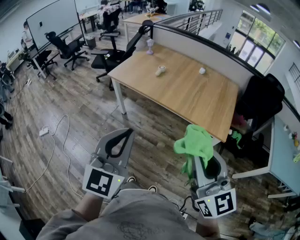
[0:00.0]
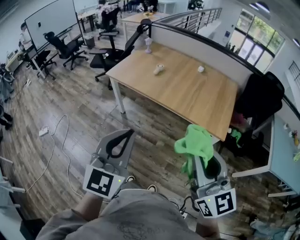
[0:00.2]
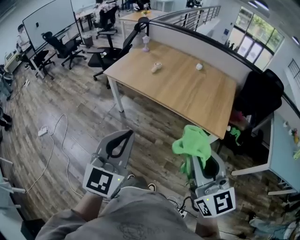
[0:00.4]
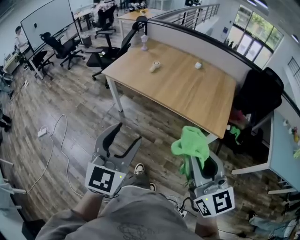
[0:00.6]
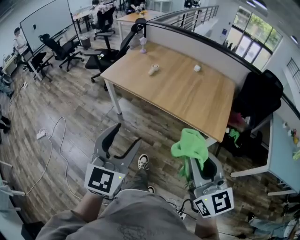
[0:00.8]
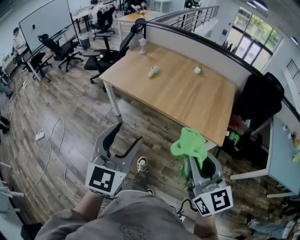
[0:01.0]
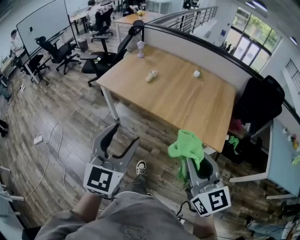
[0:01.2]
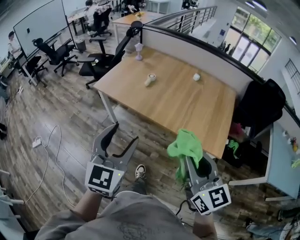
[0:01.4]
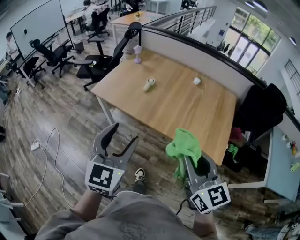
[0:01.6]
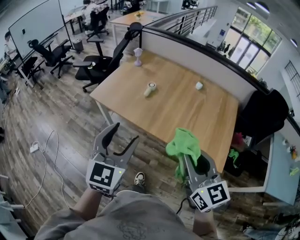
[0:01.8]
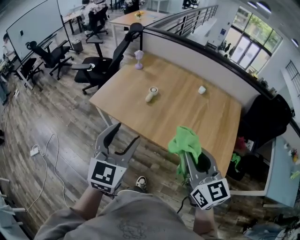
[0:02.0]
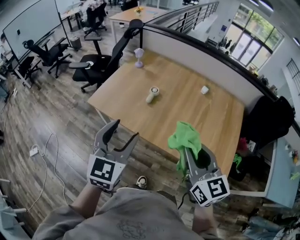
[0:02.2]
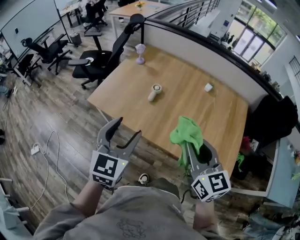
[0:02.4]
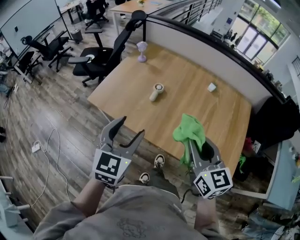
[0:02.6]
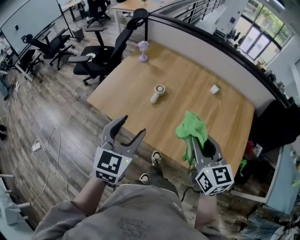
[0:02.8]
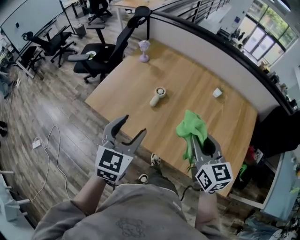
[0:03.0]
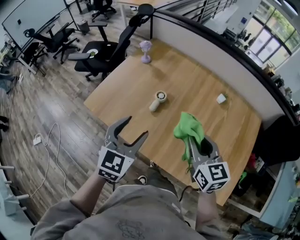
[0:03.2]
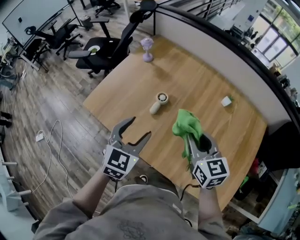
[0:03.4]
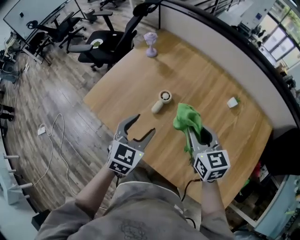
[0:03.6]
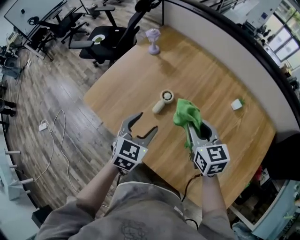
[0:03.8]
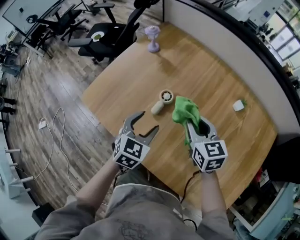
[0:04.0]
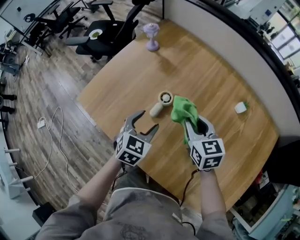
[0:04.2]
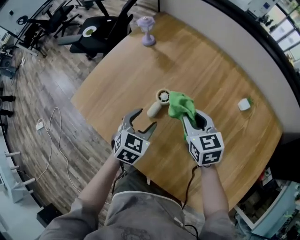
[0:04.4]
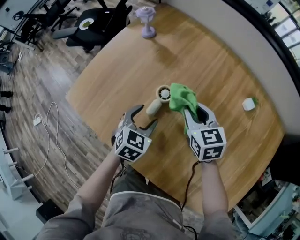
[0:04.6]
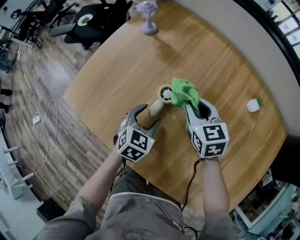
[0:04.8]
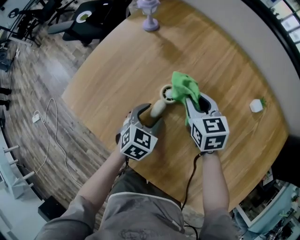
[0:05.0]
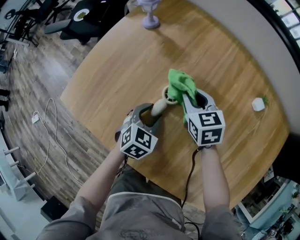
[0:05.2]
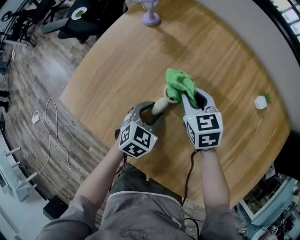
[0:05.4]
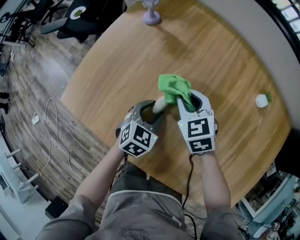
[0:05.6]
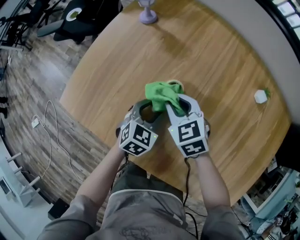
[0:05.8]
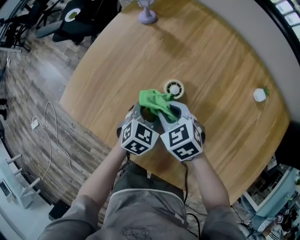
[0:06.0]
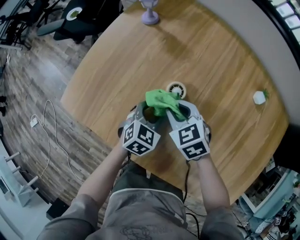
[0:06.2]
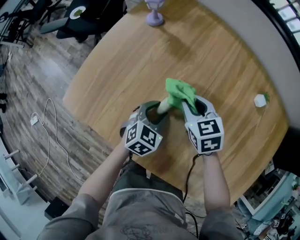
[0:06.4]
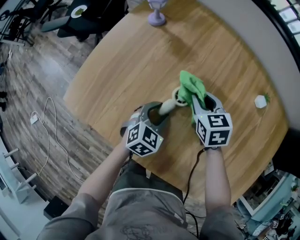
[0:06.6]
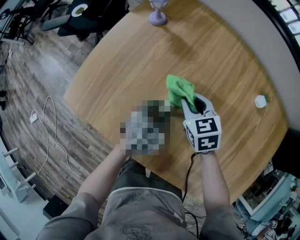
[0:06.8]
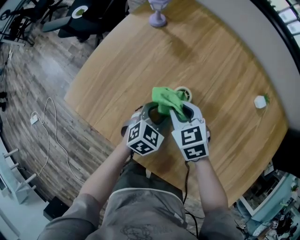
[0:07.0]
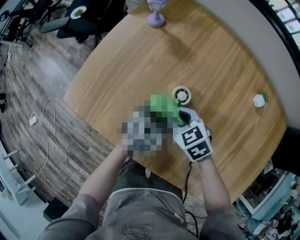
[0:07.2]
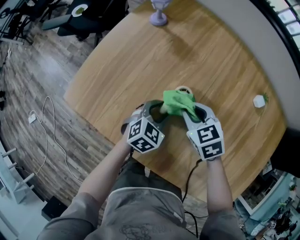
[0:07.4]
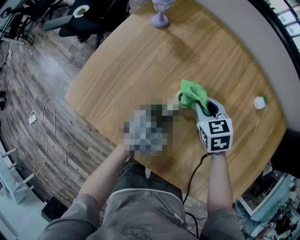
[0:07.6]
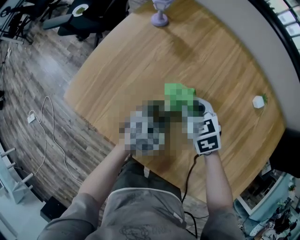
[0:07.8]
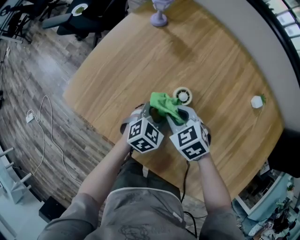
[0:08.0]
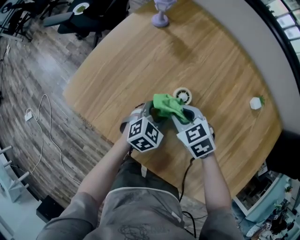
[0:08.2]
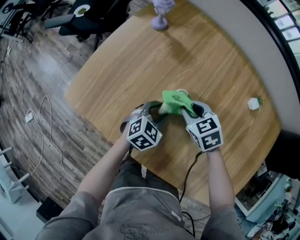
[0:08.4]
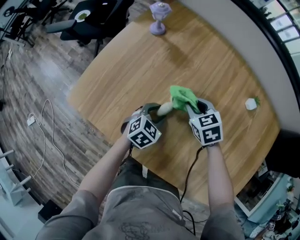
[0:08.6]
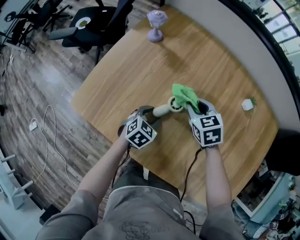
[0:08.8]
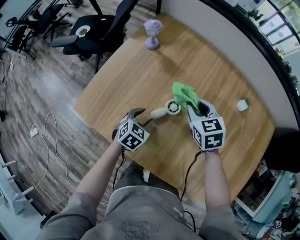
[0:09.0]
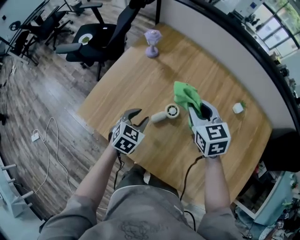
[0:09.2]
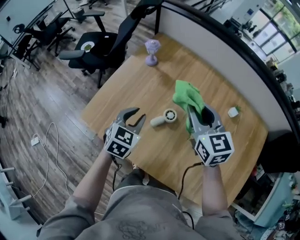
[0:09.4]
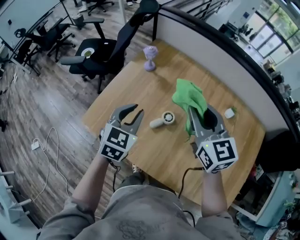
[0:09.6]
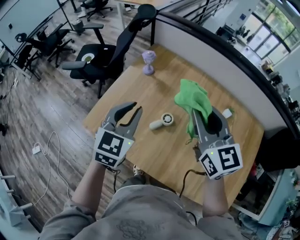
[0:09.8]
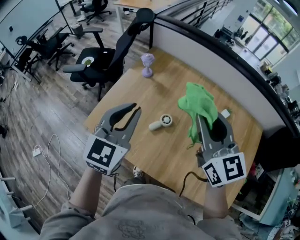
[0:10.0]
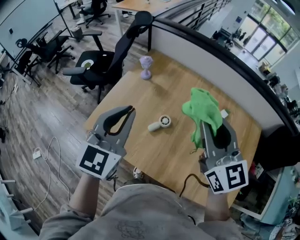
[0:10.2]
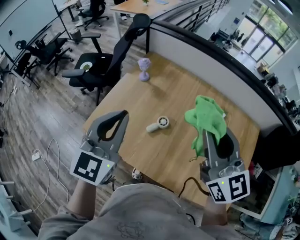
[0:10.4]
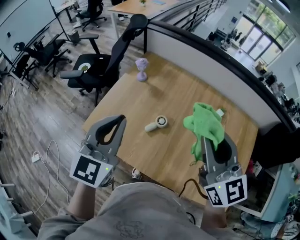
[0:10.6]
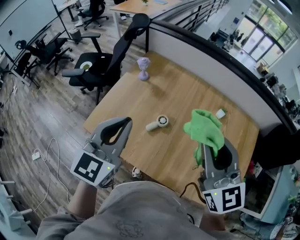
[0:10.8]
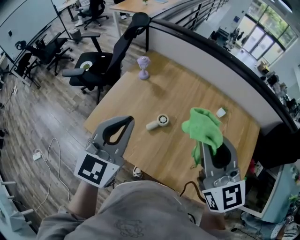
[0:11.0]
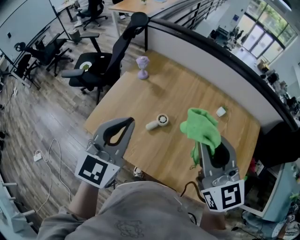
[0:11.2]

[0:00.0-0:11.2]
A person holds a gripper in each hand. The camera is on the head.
0:00.0 to 0:01.6: The two grippers go roughly 25 cm forward. The left gripper opens.
0:01.6 to 0:03.2: Both grippers travel together forward, approximately 40 cm.
0:03.2 to 0:04.8: The left gripper goes some 35 cm downward and forward, and swivels roughly 30 degrees; the right gripper shifts about 35 cm forward and downward.
0:04.8 to 0:06.4: The right gripper heads to the left, covering about 5 cm.
0:06.4 to 0:08.0: The right gripper goes forward and backward, approximately 10 cm each way, reversing 2 times, and turns by roughly 20 degrees.
0:08.0 to 0:09.6: Both grippers move upward, some 30 cm. The left gripper swivels roughly 20 degrees, and closes. Meanwhile the right gripper tilts its fingers some 40 degrees upward.
0:09.6 to 0:11.2: The left gripper is displaced upward and backward by approximately 20 cm; the right gripper shifts approximately 15 cm backward and upward.

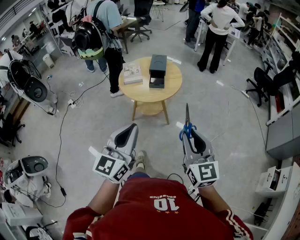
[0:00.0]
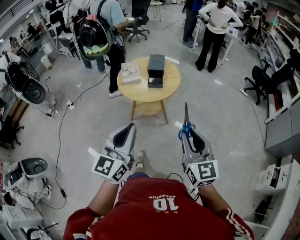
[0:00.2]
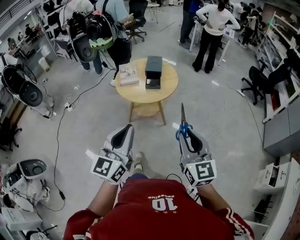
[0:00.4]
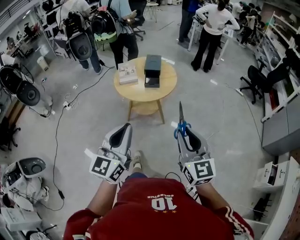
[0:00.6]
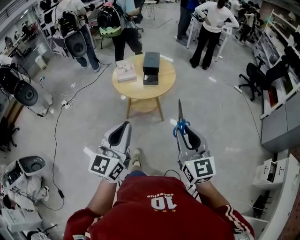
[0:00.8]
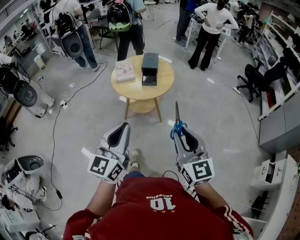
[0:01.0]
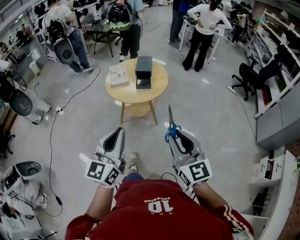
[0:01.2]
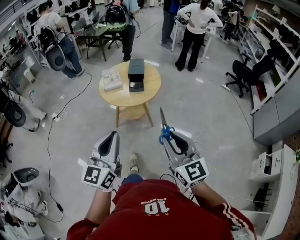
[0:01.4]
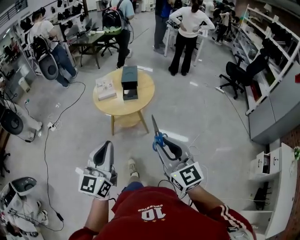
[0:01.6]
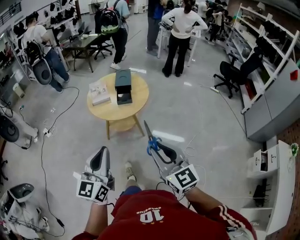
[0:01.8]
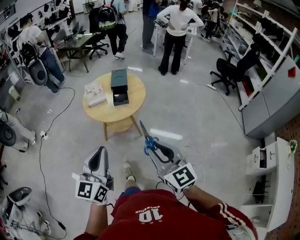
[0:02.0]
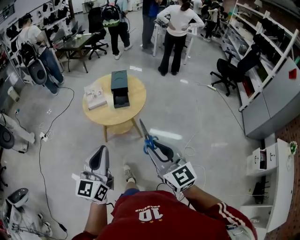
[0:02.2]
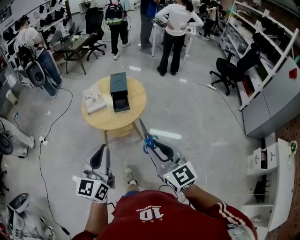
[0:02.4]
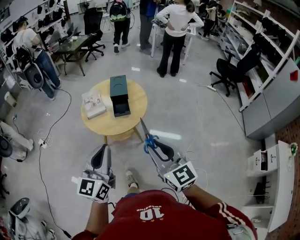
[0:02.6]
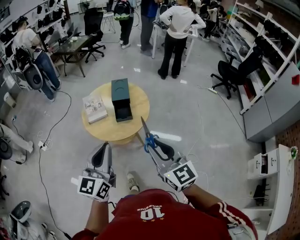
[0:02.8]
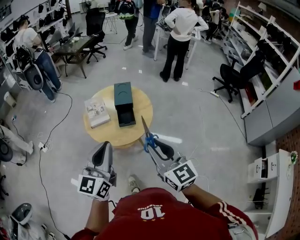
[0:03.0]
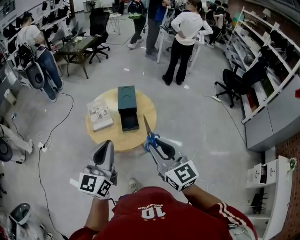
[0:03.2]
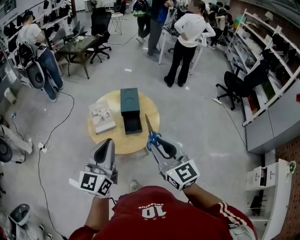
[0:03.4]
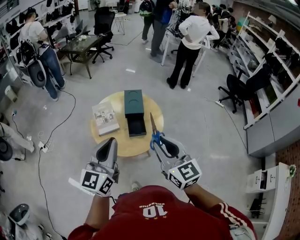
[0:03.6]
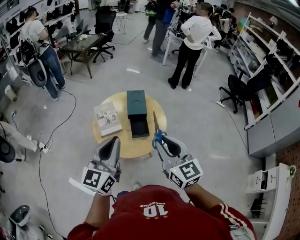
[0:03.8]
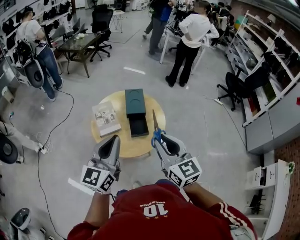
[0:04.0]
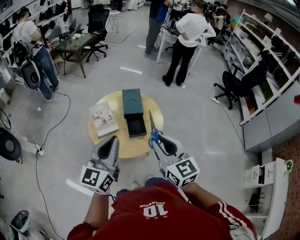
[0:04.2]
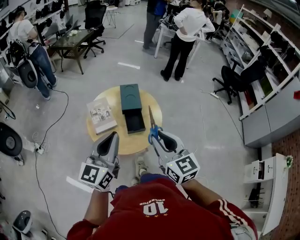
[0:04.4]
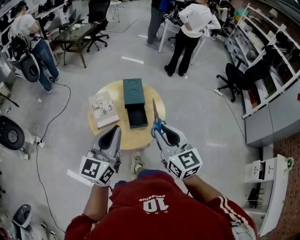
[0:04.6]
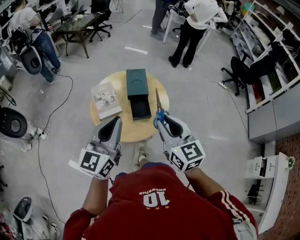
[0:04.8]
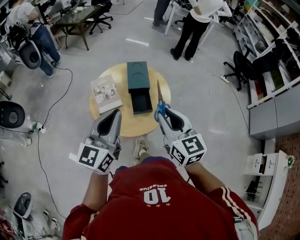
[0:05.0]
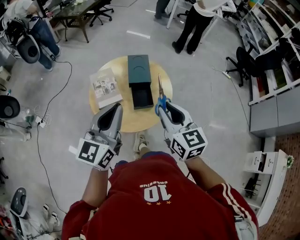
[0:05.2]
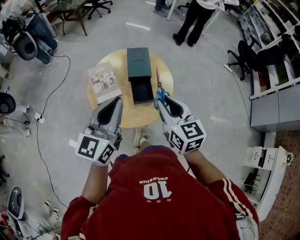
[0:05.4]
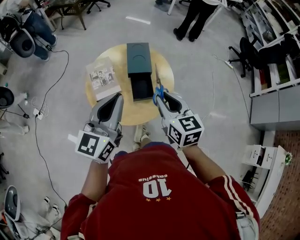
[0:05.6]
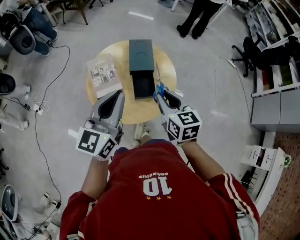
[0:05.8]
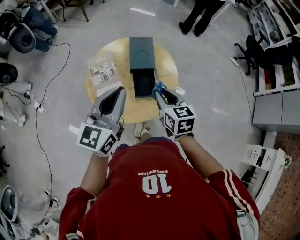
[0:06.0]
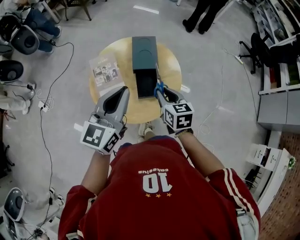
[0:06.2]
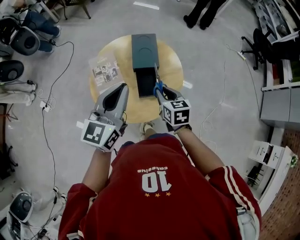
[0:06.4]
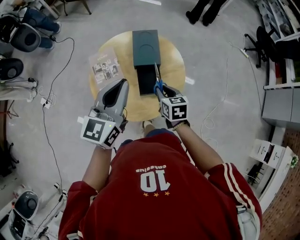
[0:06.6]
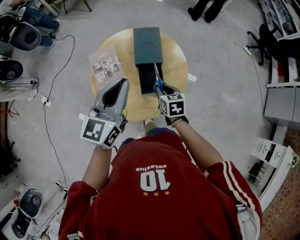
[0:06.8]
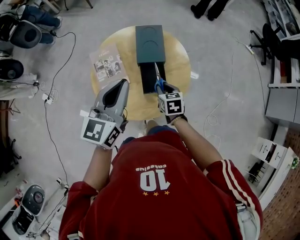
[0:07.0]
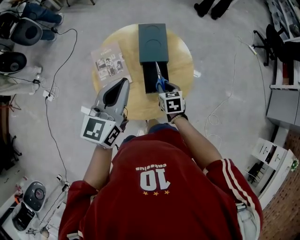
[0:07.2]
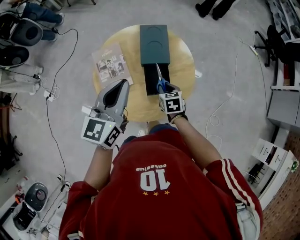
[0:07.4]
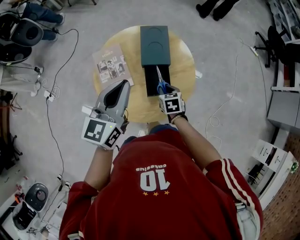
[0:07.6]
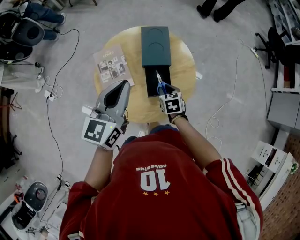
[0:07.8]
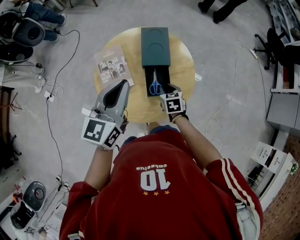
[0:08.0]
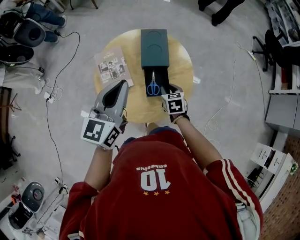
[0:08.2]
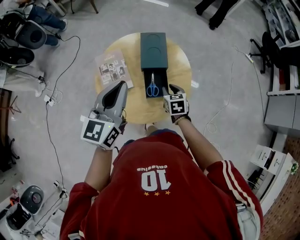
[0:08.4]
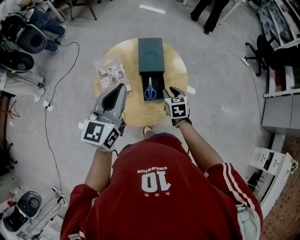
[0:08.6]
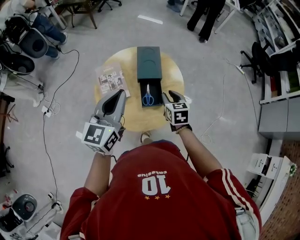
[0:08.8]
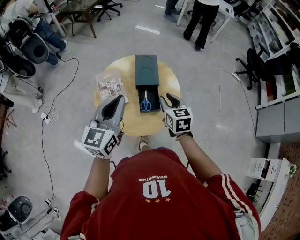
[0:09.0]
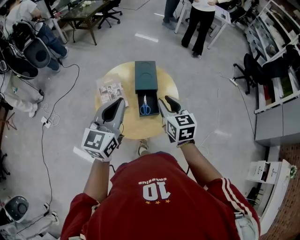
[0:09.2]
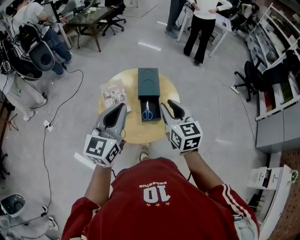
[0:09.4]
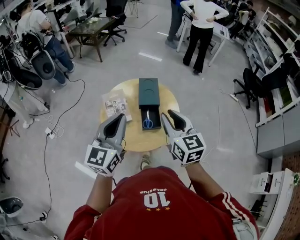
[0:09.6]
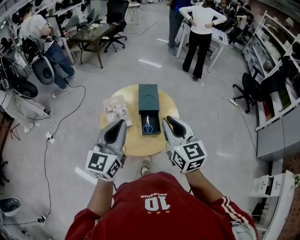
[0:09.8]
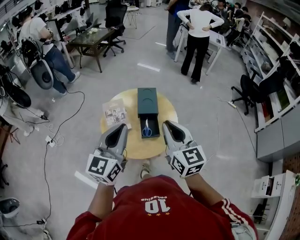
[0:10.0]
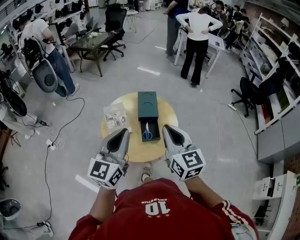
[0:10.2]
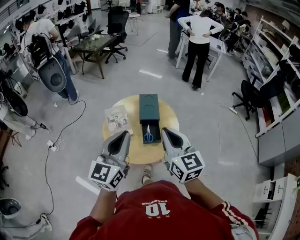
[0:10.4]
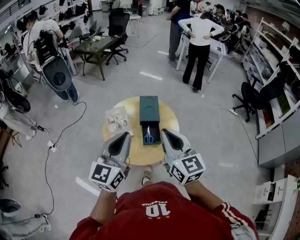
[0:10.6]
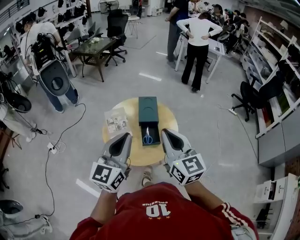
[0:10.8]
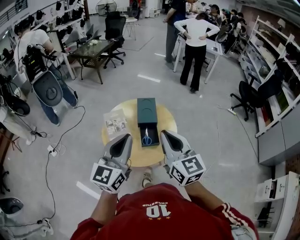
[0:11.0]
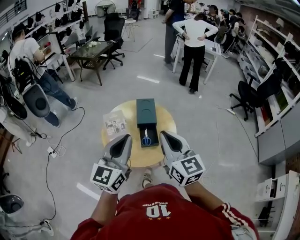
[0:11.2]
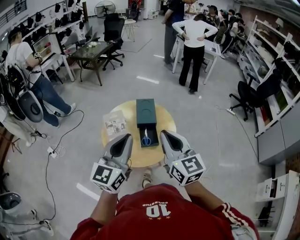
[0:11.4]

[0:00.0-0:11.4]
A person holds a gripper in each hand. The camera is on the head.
0:00.0 to 0:01.4: The grippers stay close to where they were, moving slightly.
0:01.4 to 0:02.8: Both grippers travel together forward, some 20 cm.
0:02.8 to 0:04.2: The two grippers go approximately 20 cm forward and to the left.
0:04.2 to 0:05.6: The right gripper is displaced forward and downward by about 15 cm; the left gripper heads forward, covering roughly 10 cm.
0:05.6 to 0:07.2: The right gripper heads downward, covering about 25 cm, and rotates about 30 degrees, while the left gripper shifts some 15 cm forward and downward.
0:07.2 to 0:08.6: The right gripper shifts roughly 5 cm upward.
0:08.6 to 0:10.0: The left gripper shifts some 15 cm backward and upward, while the right gripper heads upward and backward, covering roughly 35 cm, tilts its fingers roughly 40 degrees upward, and closes up.
0:10.0 to 0:11.4: The grippers stay close to where they were, moving slightly.

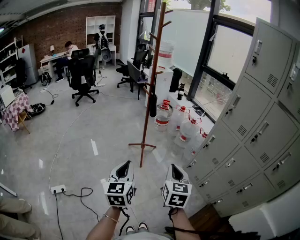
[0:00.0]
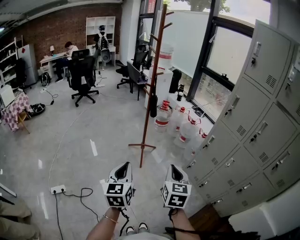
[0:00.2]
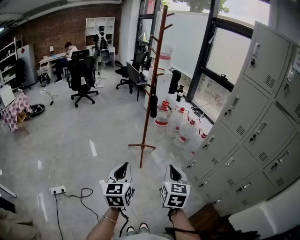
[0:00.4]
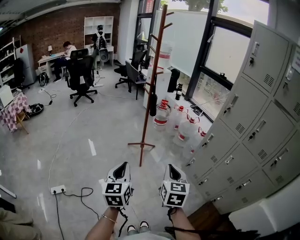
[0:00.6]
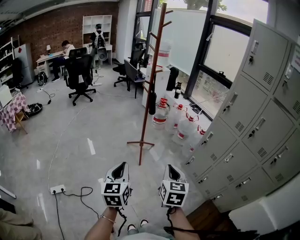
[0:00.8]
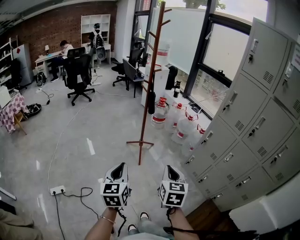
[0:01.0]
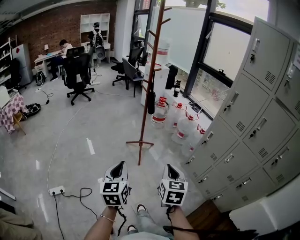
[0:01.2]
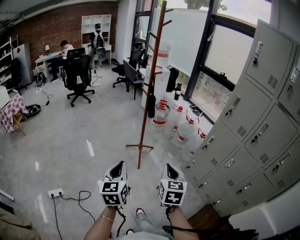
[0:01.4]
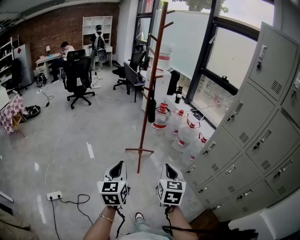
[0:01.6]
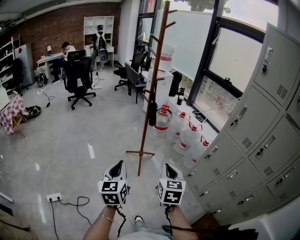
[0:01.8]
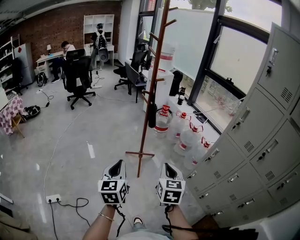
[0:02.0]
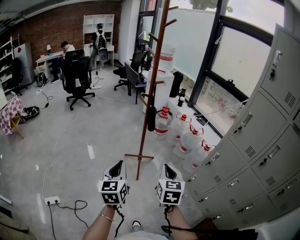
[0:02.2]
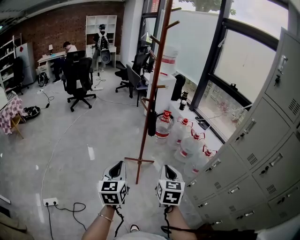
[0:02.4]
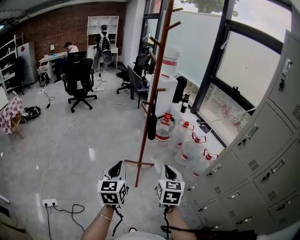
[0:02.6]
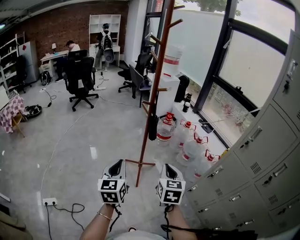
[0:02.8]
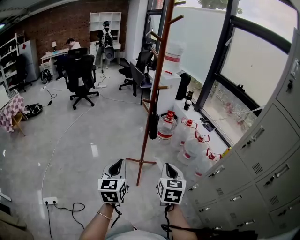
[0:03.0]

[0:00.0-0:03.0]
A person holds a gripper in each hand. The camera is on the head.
0:00.0 to 0:01.6: Both grippers move forward, some 5 cm.
0:01.6 to 0:03.0: The grippers both shift forward by approximately 20 cm.
